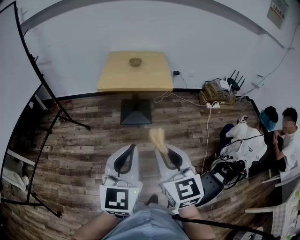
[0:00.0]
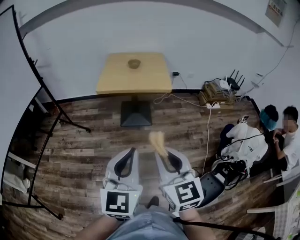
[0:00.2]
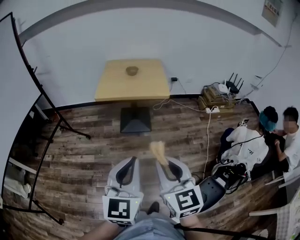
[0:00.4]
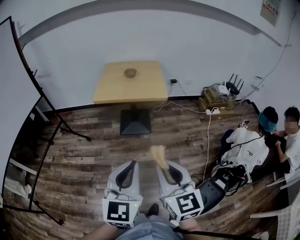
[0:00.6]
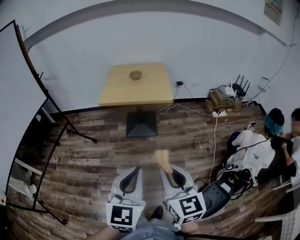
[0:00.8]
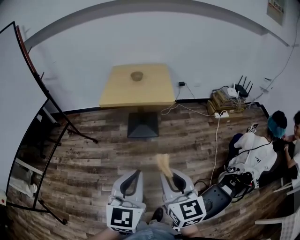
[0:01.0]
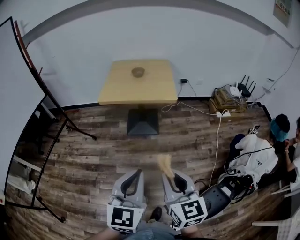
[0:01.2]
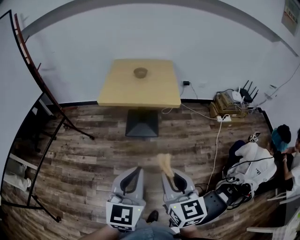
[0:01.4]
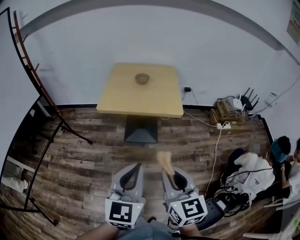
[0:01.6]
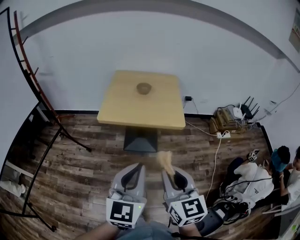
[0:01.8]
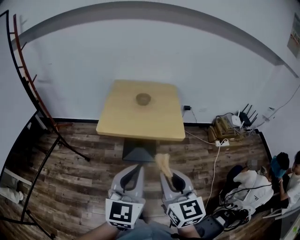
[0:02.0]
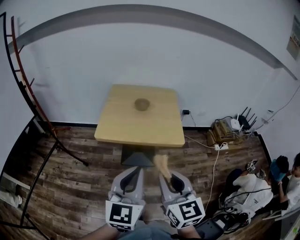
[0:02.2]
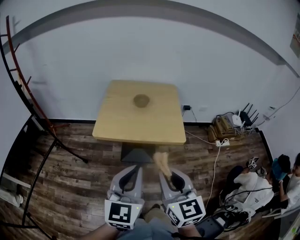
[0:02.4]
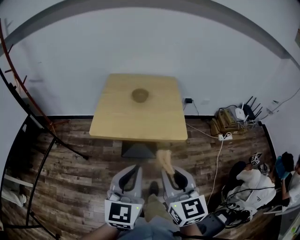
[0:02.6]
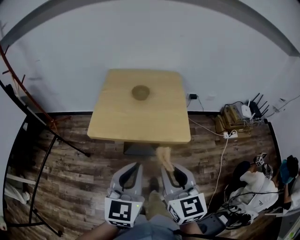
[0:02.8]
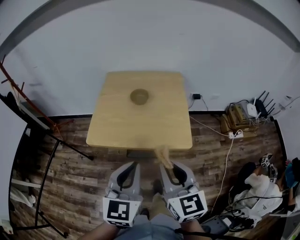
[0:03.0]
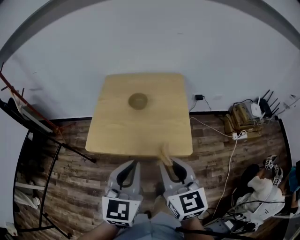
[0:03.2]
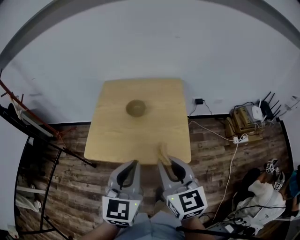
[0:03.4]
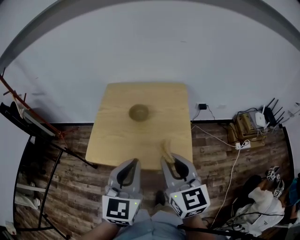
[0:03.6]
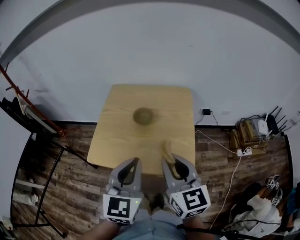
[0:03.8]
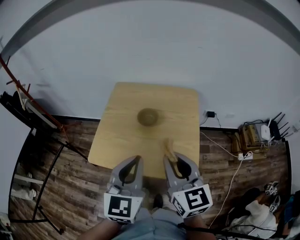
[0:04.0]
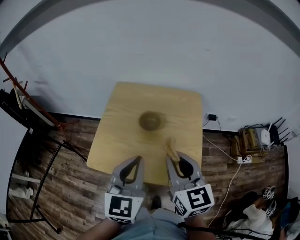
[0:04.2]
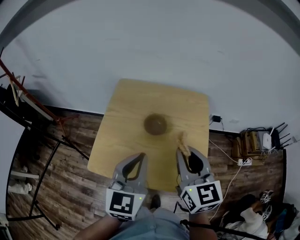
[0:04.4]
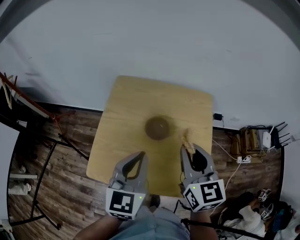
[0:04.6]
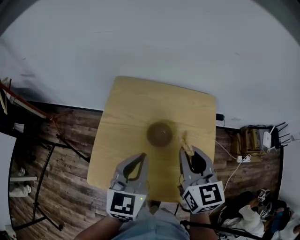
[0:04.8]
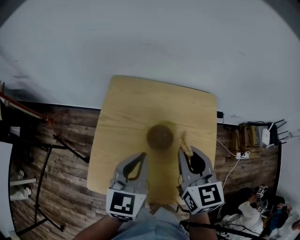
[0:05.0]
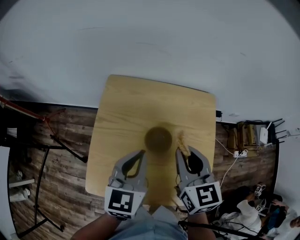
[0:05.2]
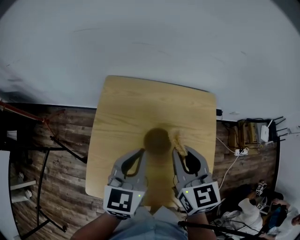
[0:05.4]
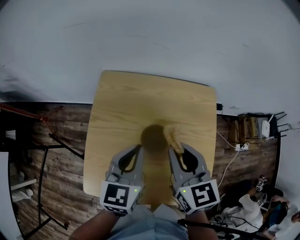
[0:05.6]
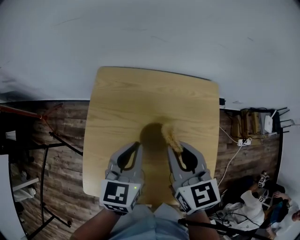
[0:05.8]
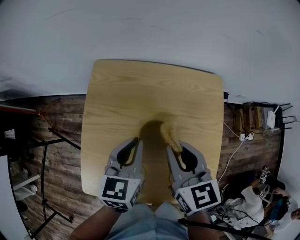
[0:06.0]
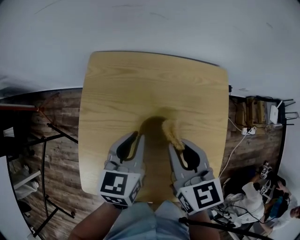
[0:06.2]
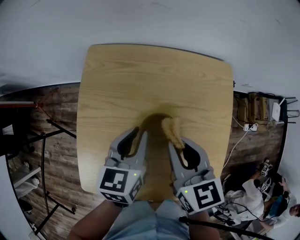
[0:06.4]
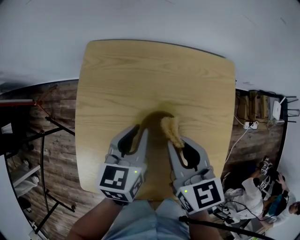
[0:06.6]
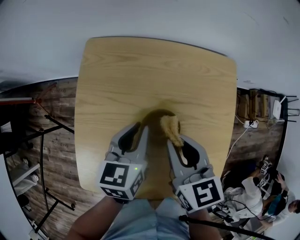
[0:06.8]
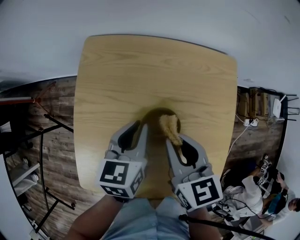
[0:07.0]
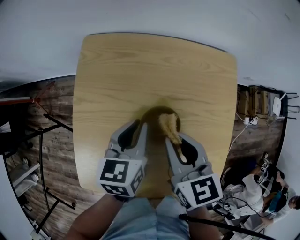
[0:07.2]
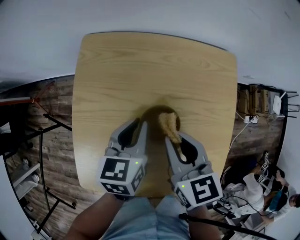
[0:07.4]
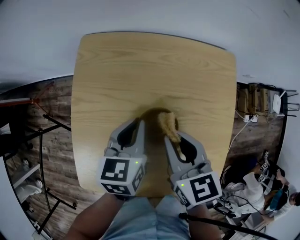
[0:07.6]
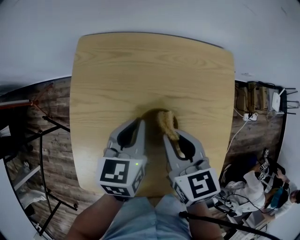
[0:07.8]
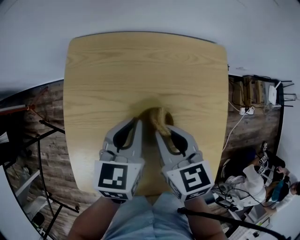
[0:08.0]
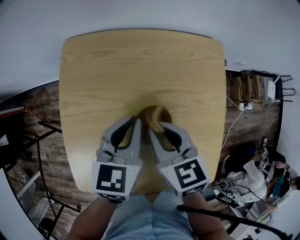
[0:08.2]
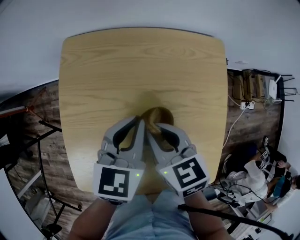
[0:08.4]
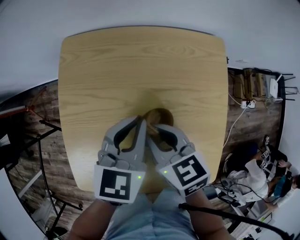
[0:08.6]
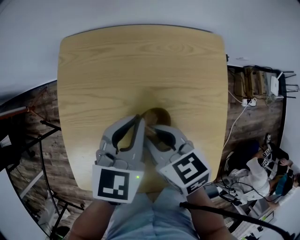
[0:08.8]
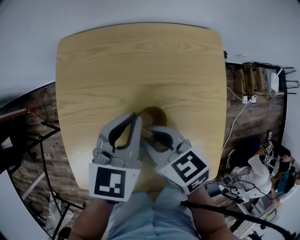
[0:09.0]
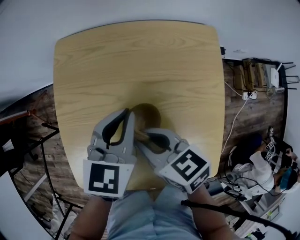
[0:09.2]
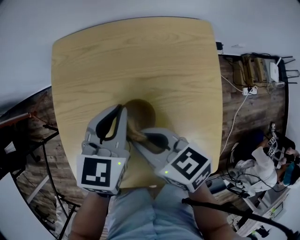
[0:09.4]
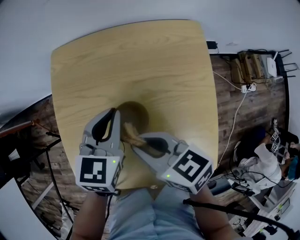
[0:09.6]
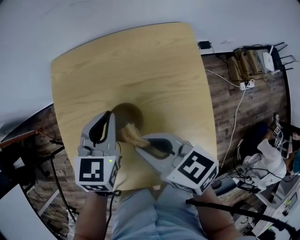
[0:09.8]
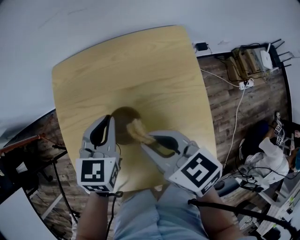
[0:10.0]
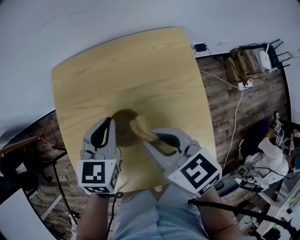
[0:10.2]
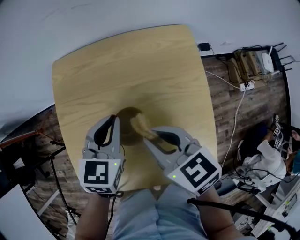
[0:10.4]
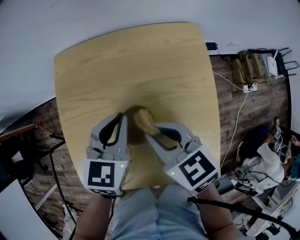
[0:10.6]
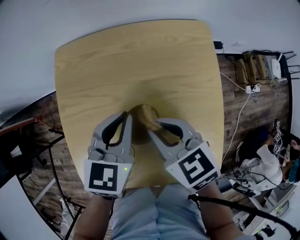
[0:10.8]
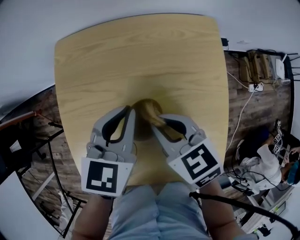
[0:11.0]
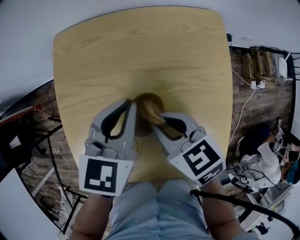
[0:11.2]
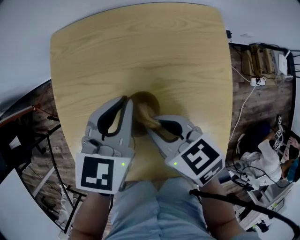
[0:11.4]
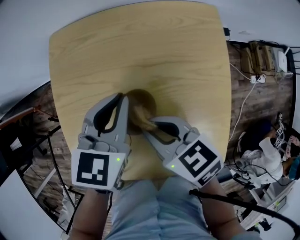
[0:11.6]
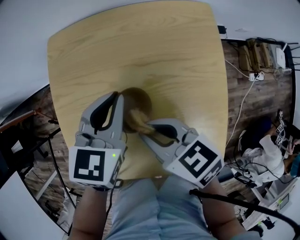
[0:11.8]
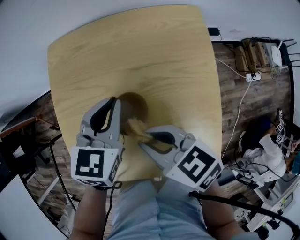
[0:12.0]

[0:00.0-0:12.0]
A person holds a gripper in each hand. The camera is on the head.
0:00.0 to 0:01.6: The two grippers go some 15 cm forward.
0:01.6 to 0:03.0: Both grippers travel together forward, some 30 cm.
0:03.0 to 0:04.4: Both grippers travel together forward, roughly 25 cm.
0:04.4 to 0:06.0: Both grippers travel together forward and downward, approximately 20 cm. The left gripper rotates some 20 degrees.
0:06.0 to 0:07.6: The two grippers go approximately 5 cm downward.
0:07.6 to 0:09.0: The right gripper moves approximately 5 cm, and rotates approximately 20 degrees, while the left gripper ends up approximately 5 cm from where it was.
0:09.0 to 0:10.4: The right gripper is displaced upward by approximately 5 cm.
0:10.4 to 0:12.0: The right gripper changes place by approximately 5 cm.

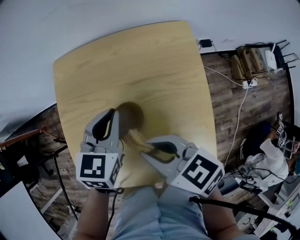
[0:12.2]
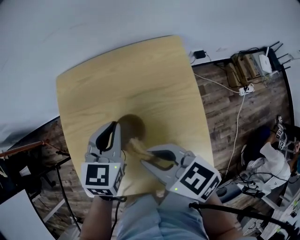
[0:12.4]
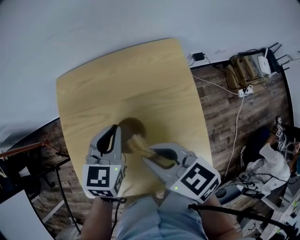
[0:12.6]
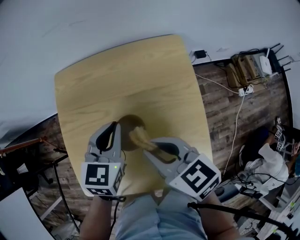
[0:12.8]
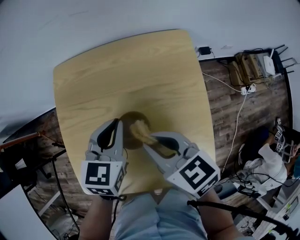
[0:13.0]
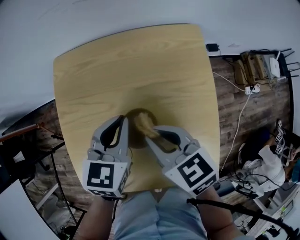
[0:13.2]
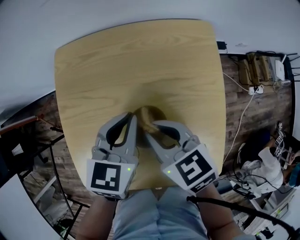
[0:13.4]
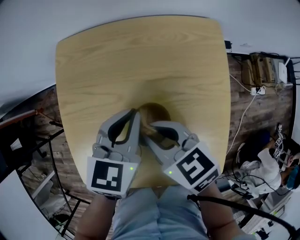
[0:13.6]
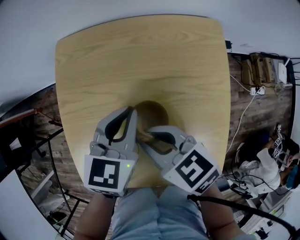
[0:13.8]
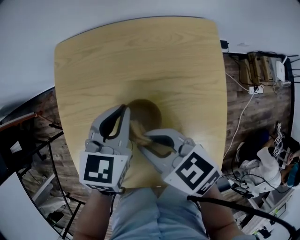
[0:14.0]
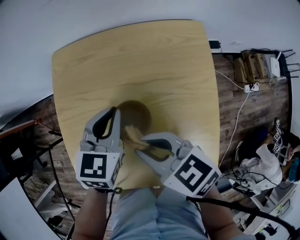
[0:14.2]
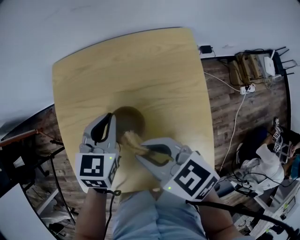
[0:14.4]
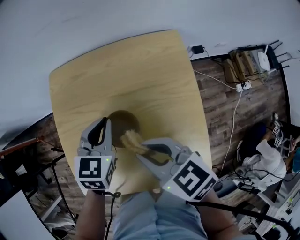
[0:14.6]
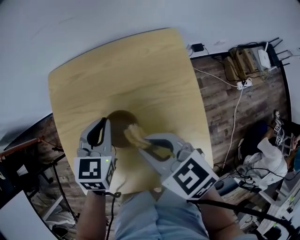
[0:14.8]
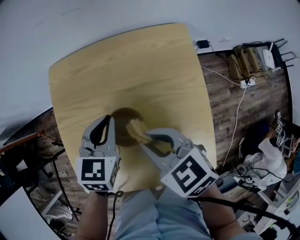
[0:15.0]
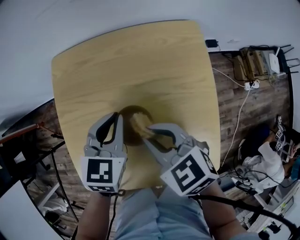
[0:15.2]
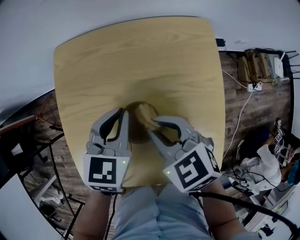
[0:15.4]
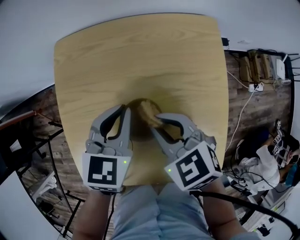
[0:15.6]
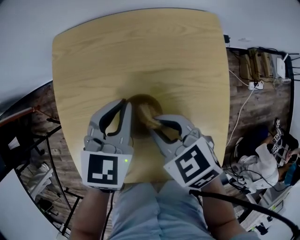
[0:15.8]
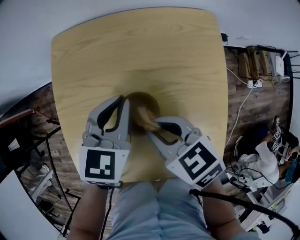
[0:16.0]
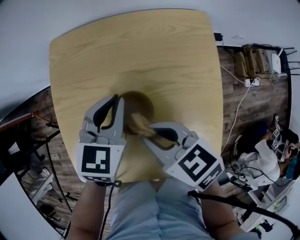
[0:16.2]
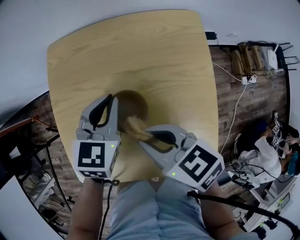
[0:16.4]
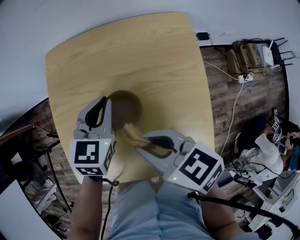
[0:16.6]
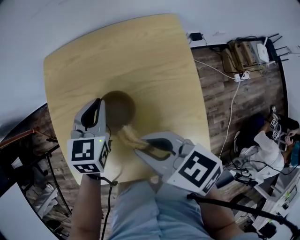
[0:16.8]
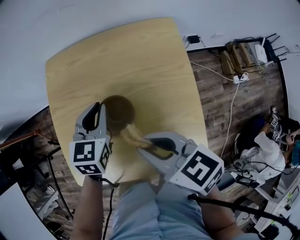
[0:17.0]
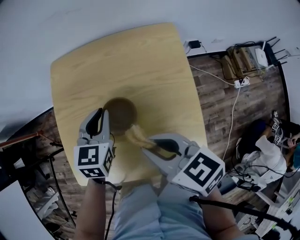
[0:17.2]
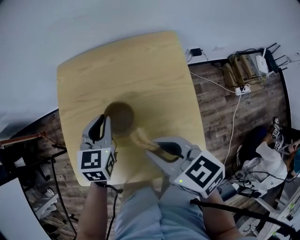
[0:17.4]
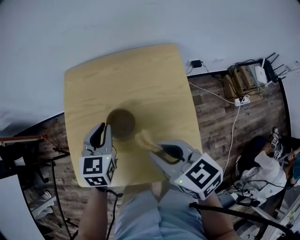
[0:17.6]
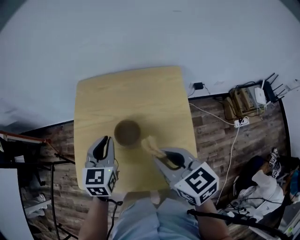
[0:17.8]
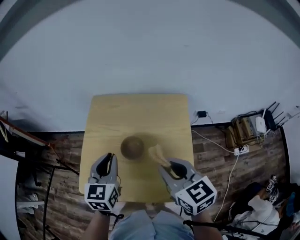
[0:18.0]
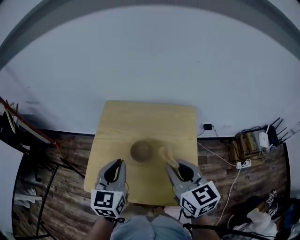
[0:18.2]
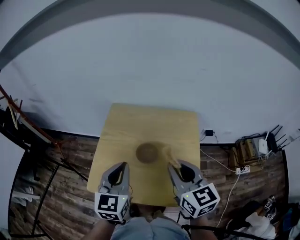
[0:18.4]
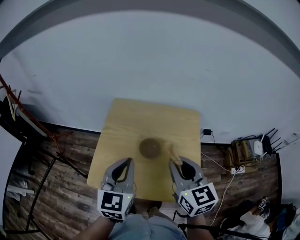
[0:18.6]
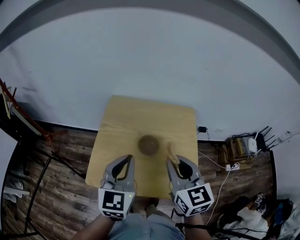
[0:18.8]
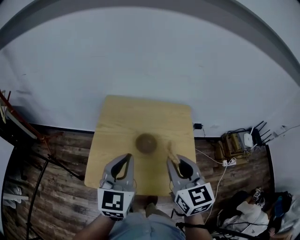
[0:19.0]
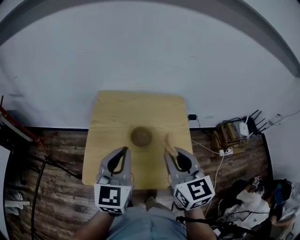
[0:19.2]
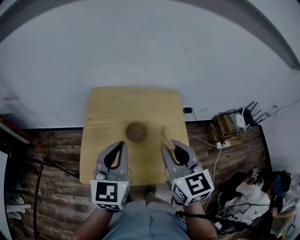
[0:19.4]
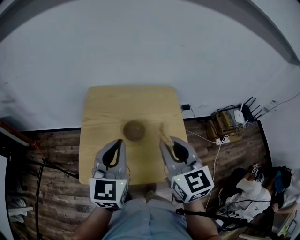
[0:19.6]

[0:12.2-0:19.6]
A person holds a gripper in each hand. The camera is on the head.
0:12.2 to 0:13.6: The right gripper is displaced forward and downward by about 10 cm.
0:15.2 to 0:16.6: The right gripper moves some 5 cm, and swivels some 20 degrees.
0:16.6 to 0:18.2: The left gripper moves upward, backward and to the left, roughly 25 cm, and turns by approximately 30 degrees, while the right gripper shifts about 15 cm upward, to the right and backward, and swivels some 30 degrees.
0:18.2 to 0:19.6: The left gripper is displaced upward by about 5 cm. The right gripper is displaced to the left by roughly 5 cm.

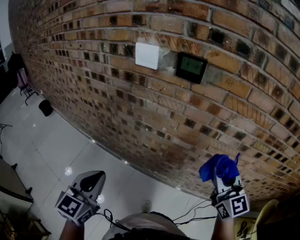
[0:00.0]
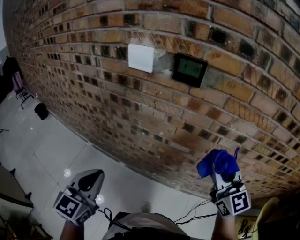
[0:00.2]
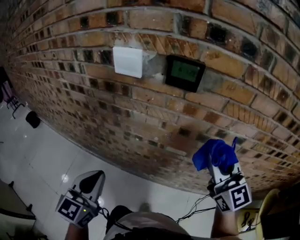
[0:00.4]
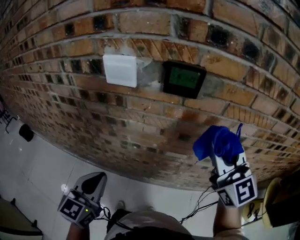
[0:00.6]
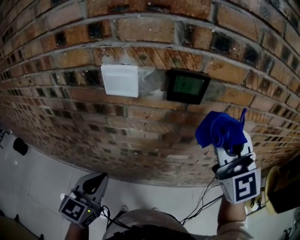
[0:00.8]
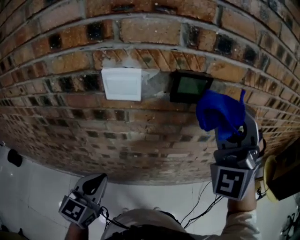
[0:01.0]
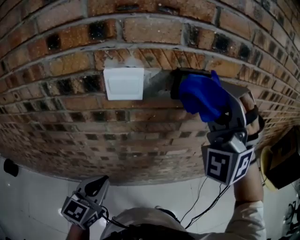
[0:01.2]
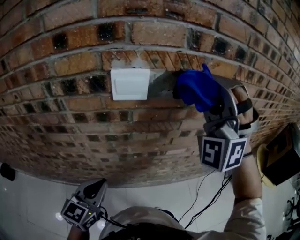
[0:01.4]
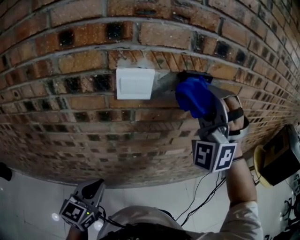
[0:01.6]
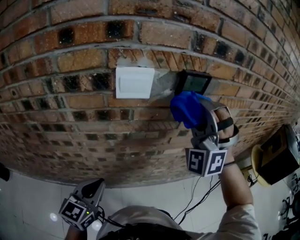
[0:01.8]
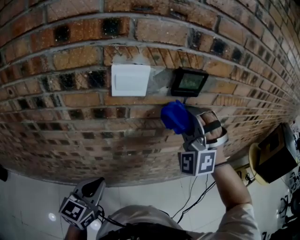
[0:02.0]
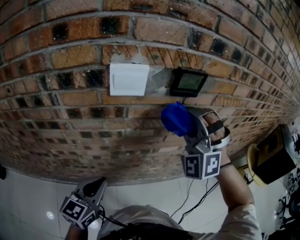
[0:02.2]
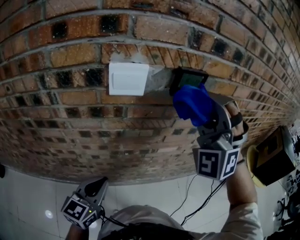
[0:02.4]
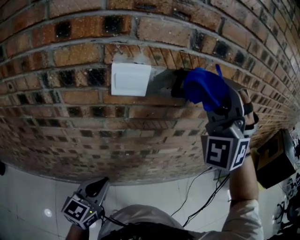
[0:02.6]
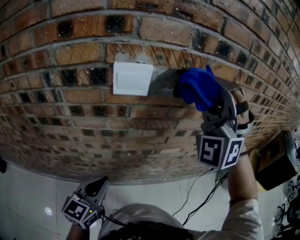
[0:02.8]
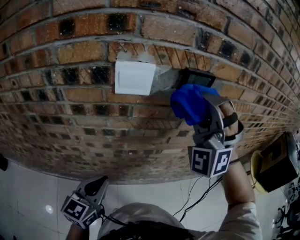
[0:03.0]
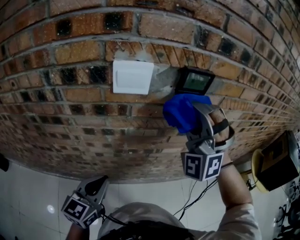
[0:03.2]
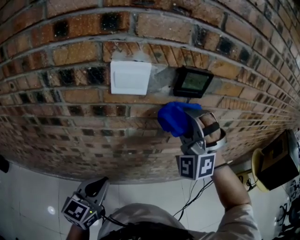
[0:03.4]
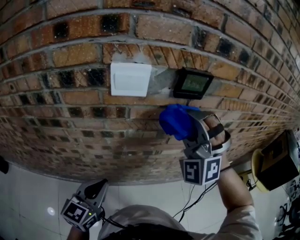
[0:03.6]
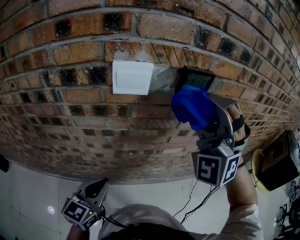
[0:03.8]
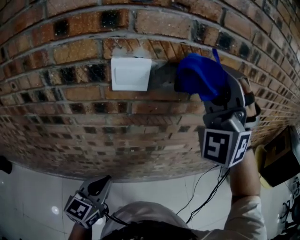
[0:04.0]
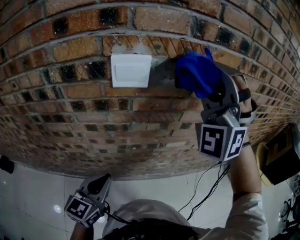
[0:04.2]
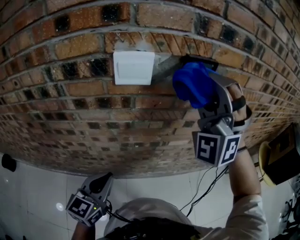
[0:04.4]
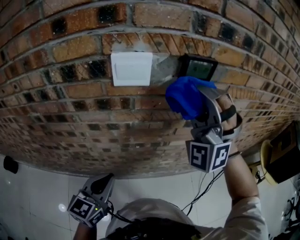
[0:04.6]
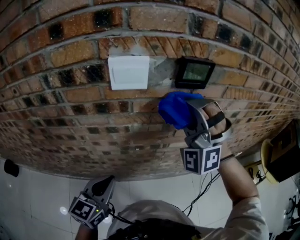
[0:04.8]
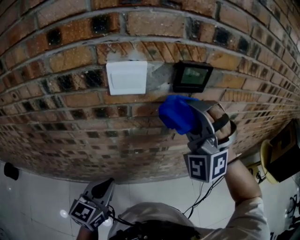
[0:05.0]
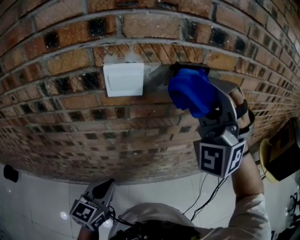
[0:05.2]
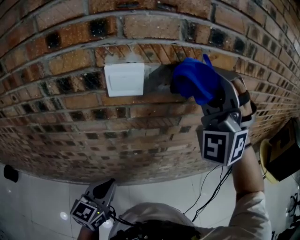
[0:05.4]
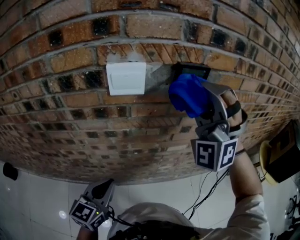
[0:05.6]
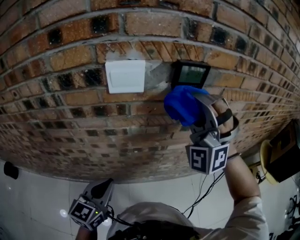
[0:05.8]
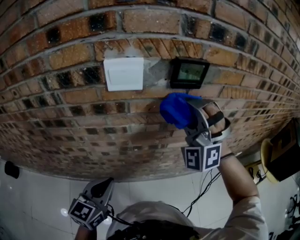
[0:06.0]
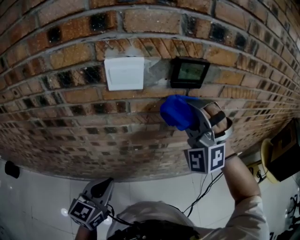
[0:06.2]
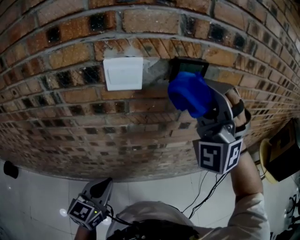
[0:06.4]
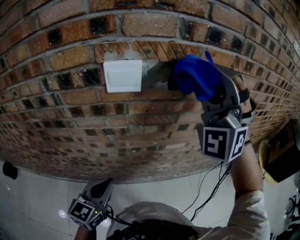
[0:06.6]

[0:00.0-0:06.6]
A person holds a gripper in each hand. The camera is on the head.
0:00.0 to 0:01.6: The left gripper changes place by roughly 25 cm, and turns by roughly 30 degrees.
